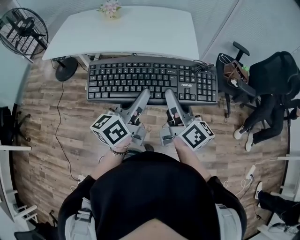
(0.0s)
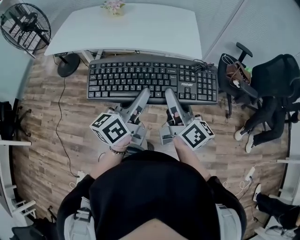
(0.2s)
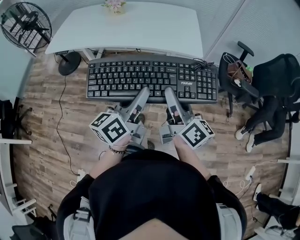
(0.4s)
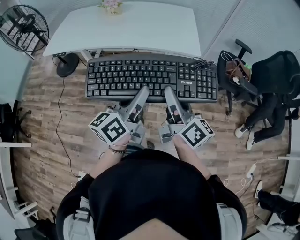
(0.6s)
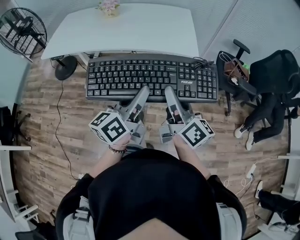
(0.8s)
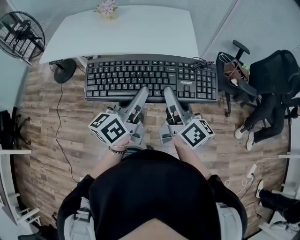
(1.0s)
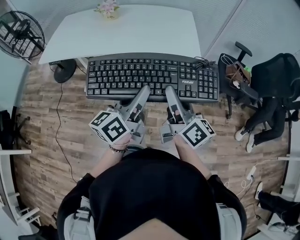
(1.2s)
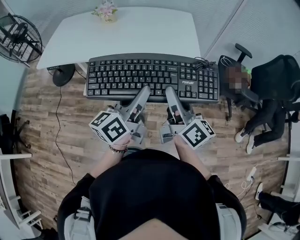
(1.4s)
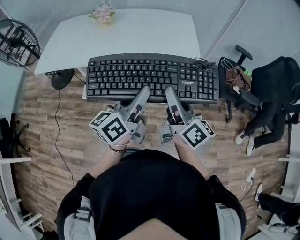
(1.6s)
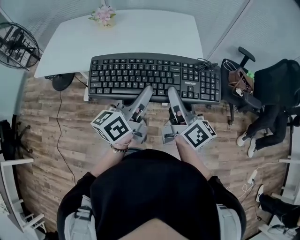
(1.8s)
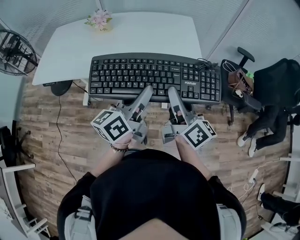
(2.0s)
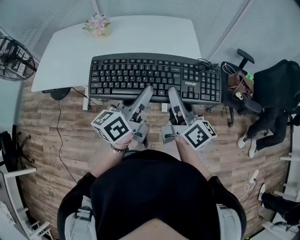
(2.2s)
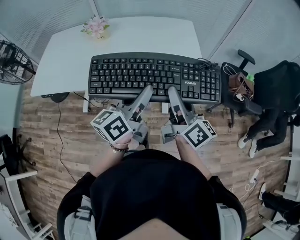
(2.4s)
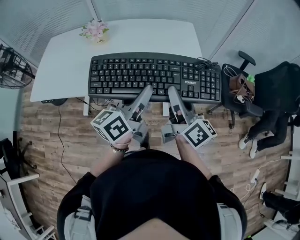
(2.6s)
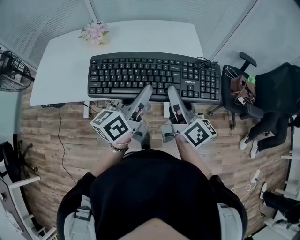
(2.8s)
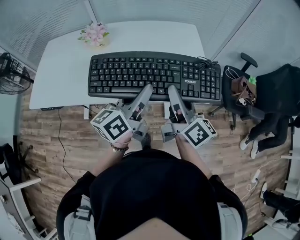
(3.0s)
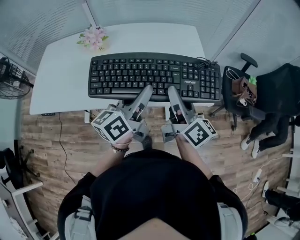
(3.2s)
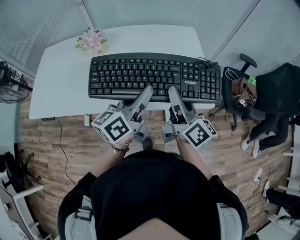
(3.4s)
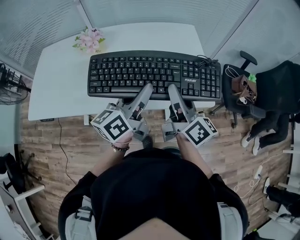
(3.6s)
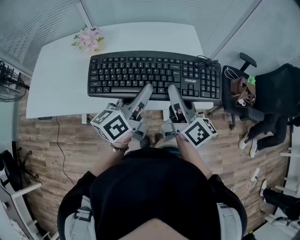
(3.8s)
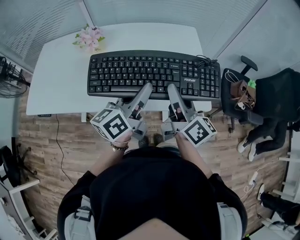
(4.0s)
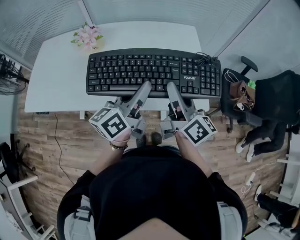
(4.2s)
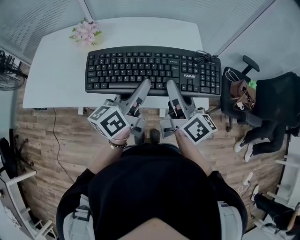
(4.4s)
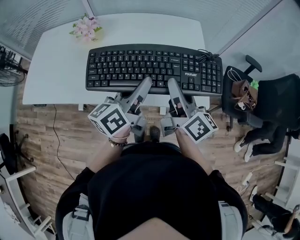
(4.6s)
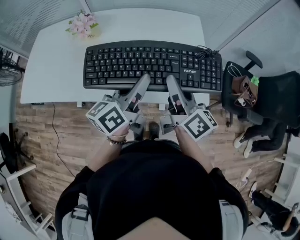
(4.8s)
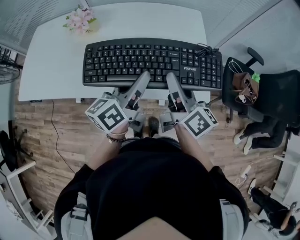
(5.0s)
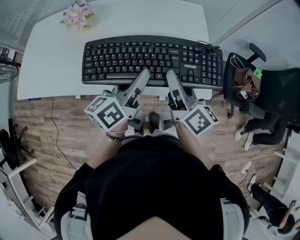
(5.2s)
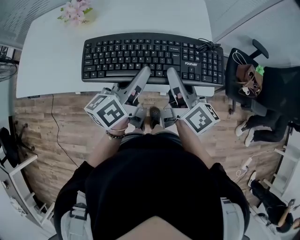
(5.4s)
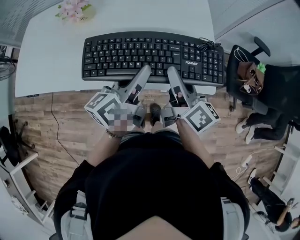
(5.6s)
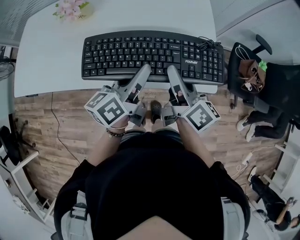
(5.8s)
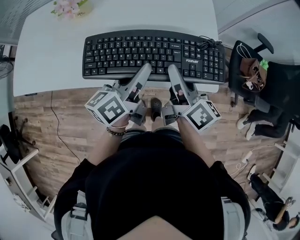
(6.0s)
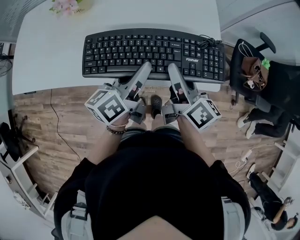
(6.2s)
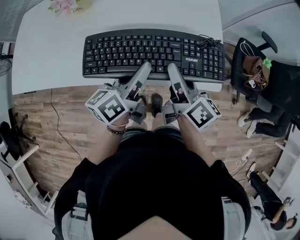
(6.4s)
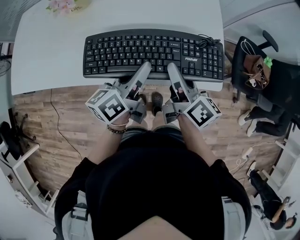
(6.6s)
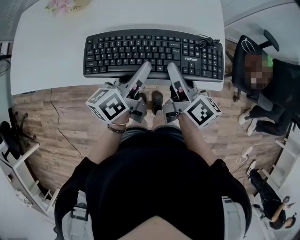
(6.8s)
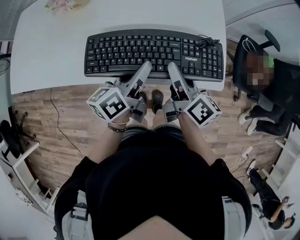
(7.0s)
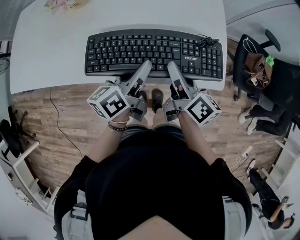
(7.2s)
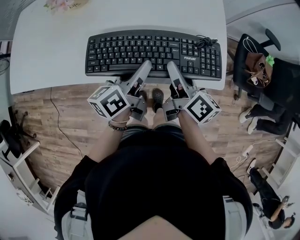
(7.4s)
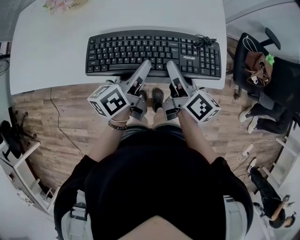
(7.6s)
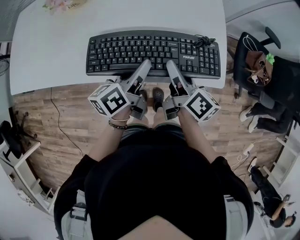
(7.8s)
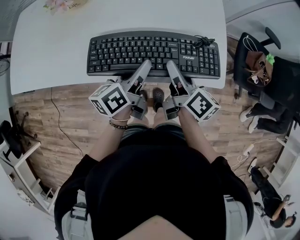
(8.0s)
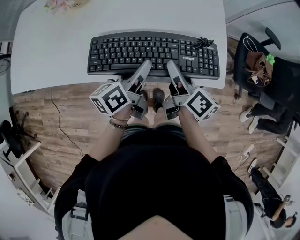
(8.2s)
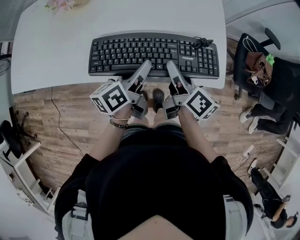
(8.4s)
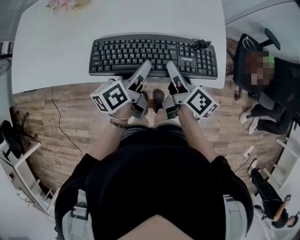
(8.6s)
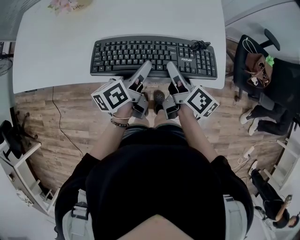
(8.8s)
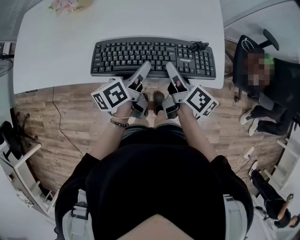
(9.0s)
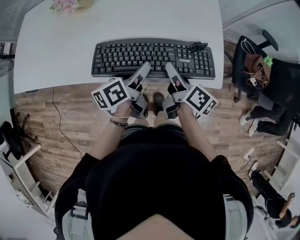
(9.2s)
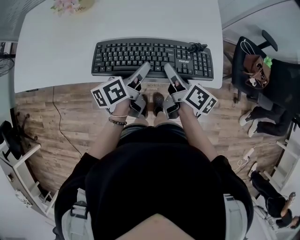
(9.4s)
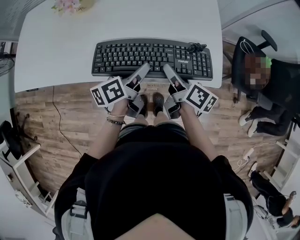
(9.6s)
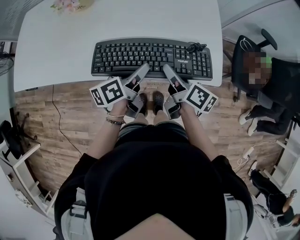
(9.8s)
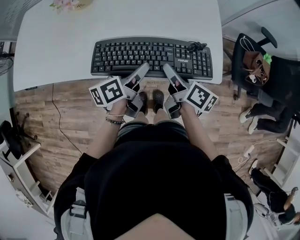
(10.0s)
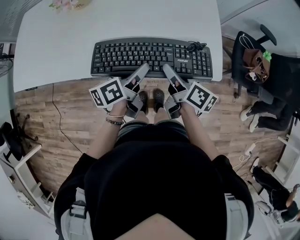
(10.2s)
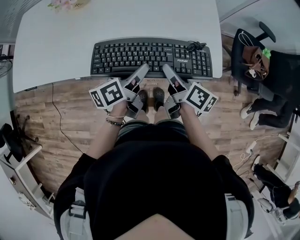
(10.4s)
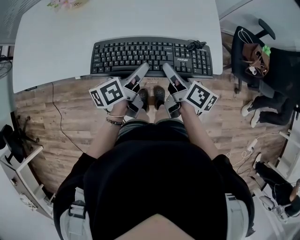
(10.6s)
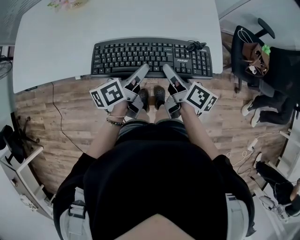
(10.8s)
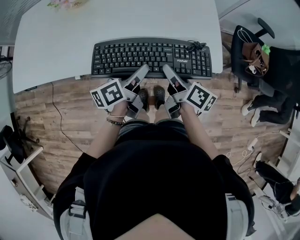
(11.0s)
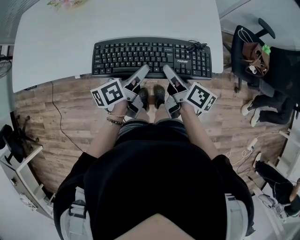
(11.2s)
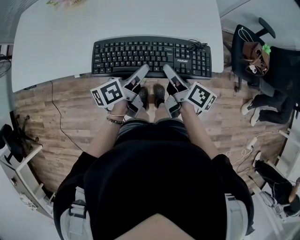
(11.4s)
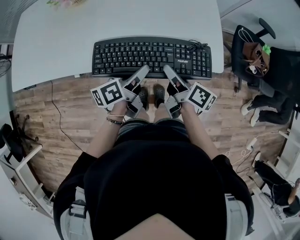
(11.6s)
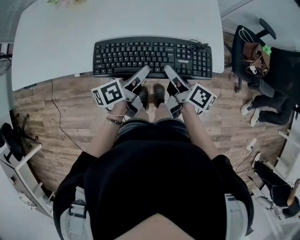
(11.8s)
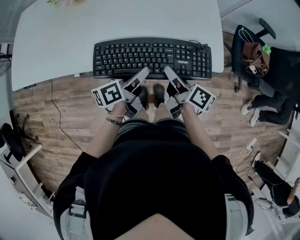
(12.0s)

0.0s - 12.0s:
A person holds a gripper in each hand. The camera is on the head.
0.0s - 1.6s: The two grippers go some 15 cm forward.
1.6s - 3.0s: Both grippers move forward, roughly 15 cm.
3.0s - 4.4s: Both grippers move forward, approximately 10 cm.
4.4s - 6.0s: Both grippers travel together downward, roughly 10 cm.
6.0s - 7.6s: Both grippers move downward, approximately 5 cm.
7.6s - 10.4s: There are only small adjustments of the grippers.
10.4s - 12.0s: There are only small adjustments of the grippers.

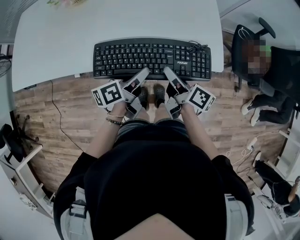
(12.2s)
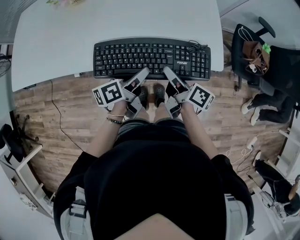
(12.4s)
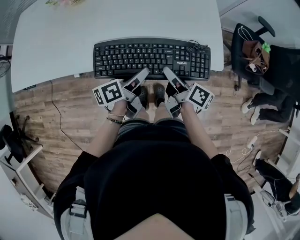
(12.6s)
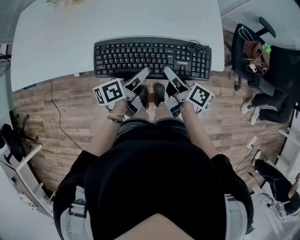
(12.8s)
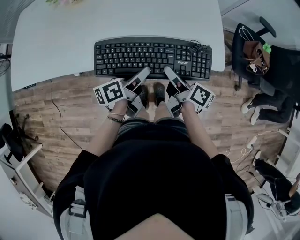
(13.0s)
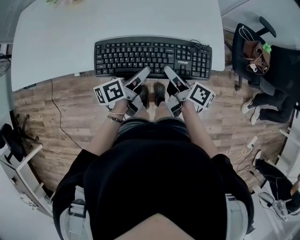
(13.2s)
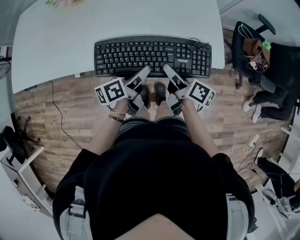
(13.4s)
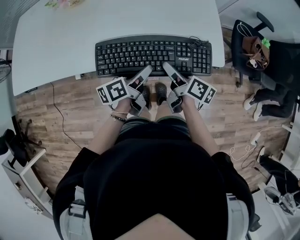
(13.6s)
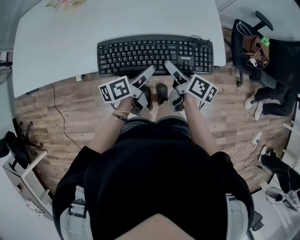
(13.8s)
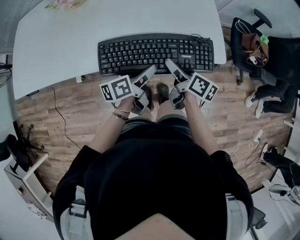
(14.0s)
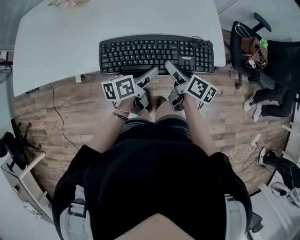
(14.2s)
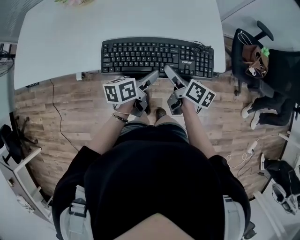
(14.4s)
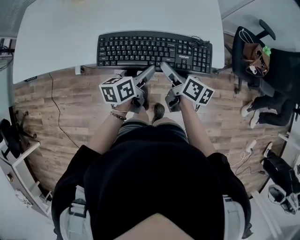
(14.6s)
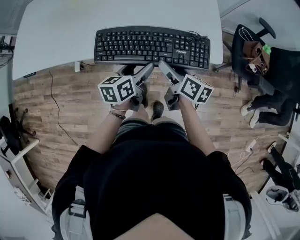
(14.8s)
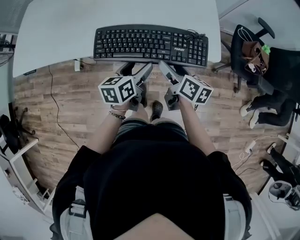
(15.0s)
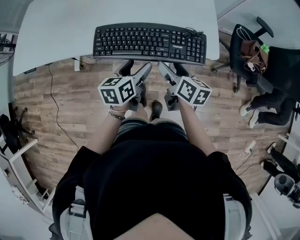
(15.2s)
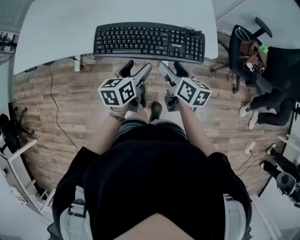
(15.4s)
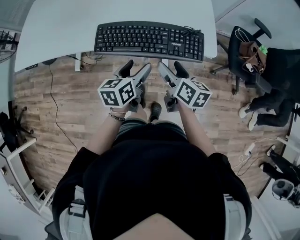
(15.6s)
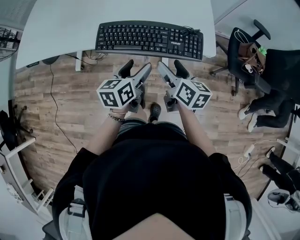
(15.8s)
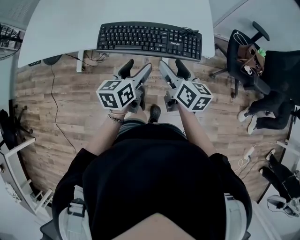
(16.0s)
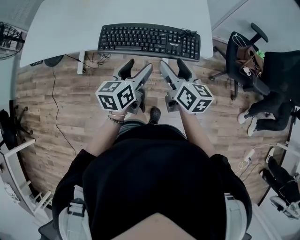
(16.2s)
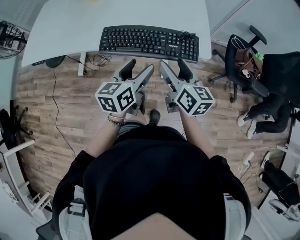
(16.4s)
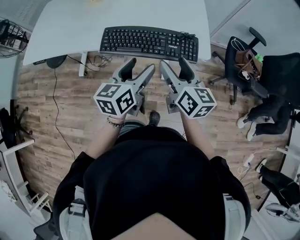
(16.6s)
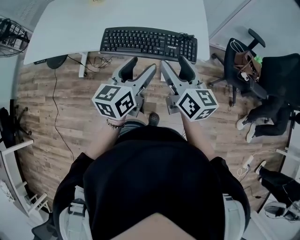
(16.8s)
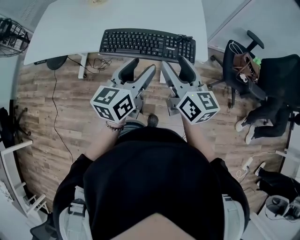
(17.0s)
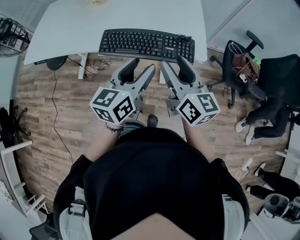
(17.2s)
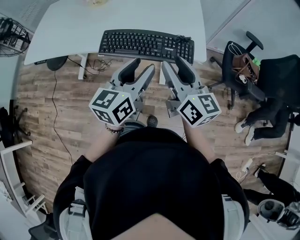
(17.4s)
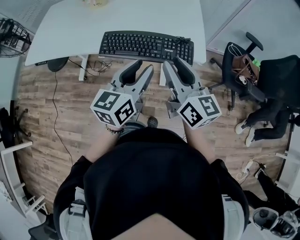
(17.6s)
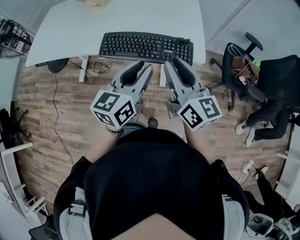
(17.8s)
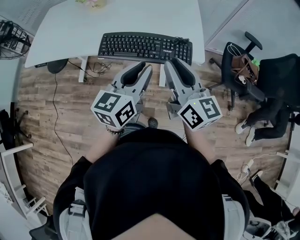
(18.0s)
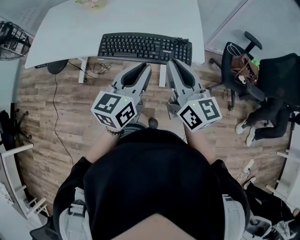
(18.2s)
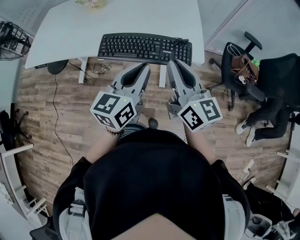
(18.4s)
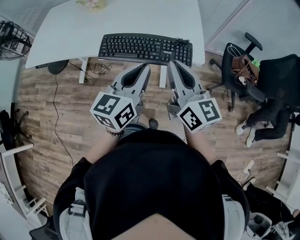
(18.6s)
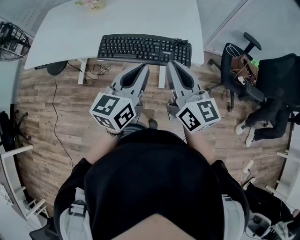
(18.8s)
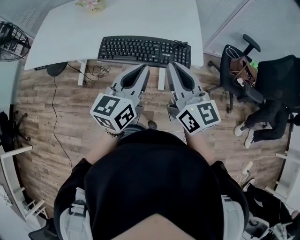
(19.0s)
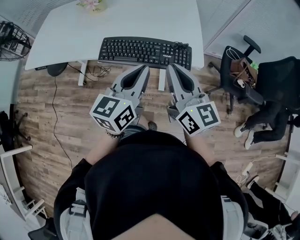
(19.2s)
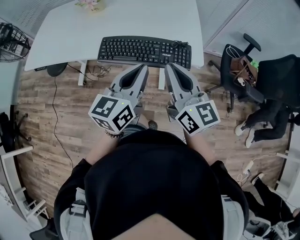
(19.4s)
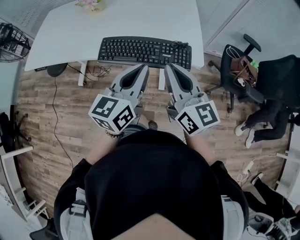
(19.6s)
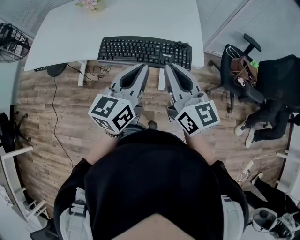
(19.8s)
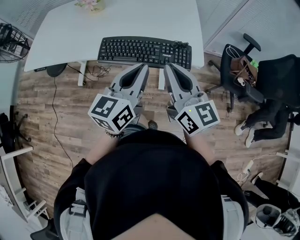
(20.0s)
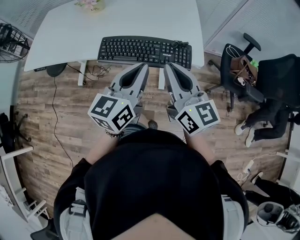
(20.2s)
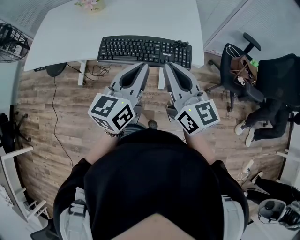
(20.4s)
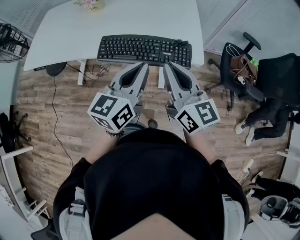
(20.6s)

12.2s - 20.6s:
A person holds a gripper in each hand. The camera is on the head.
12.2s - 13.6s: The right gripper opens.
13.6s - 15.0s: The left gripper rotates some 30 degrees, and opens.
15.0s - 16.4s: The right gripper travels upward by about 10 cm, and changes its angle by approximately 20 degrees. Meanwhile the left gripper travels upward and backward by roughly 10 cm.
16.4s - 17.8s: The grippers both shift upward by about 10 cm. The right gripper closes its fingers, while the left gripper closes.
17.8s - 19.2s: There are only small adjustments of the grippers.
19.2s - 20.6s: Both grippers stay about where they are.

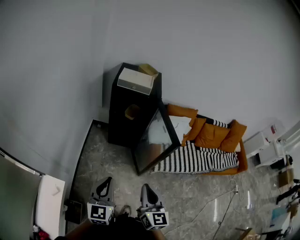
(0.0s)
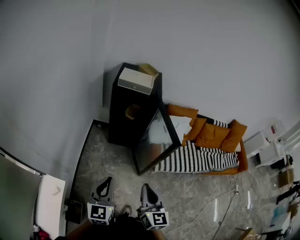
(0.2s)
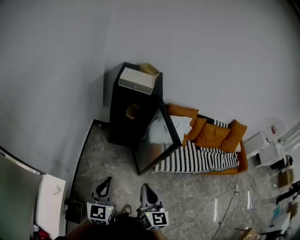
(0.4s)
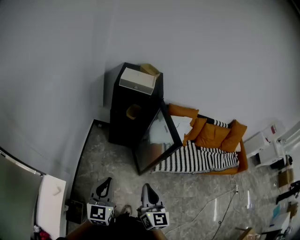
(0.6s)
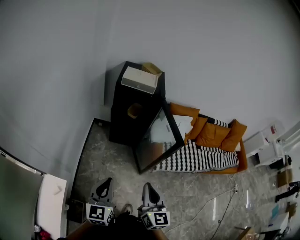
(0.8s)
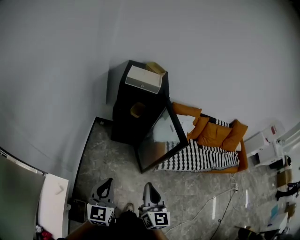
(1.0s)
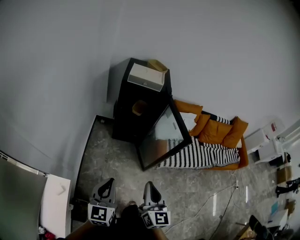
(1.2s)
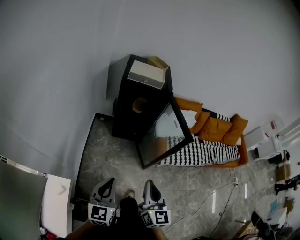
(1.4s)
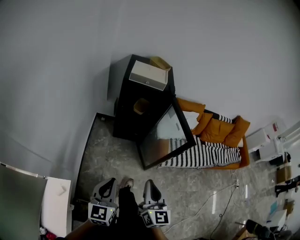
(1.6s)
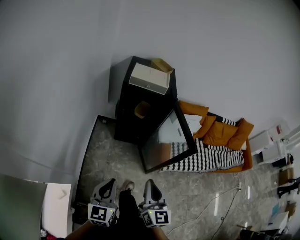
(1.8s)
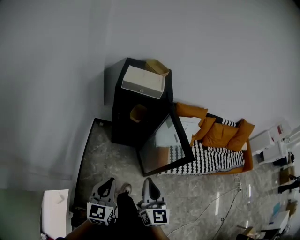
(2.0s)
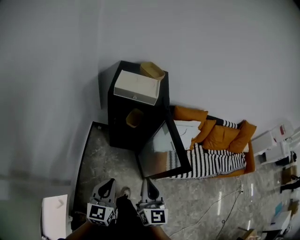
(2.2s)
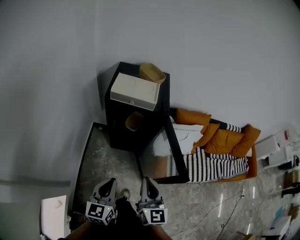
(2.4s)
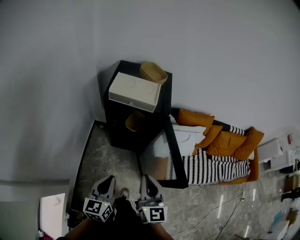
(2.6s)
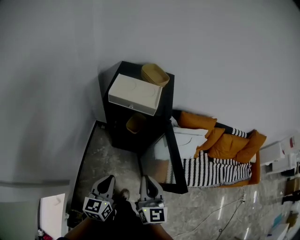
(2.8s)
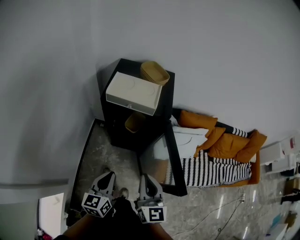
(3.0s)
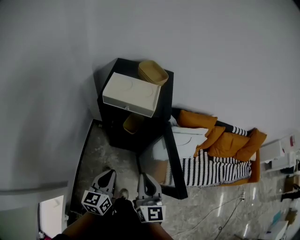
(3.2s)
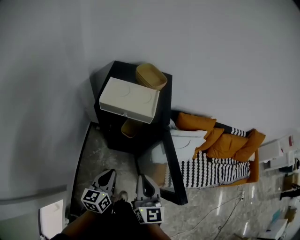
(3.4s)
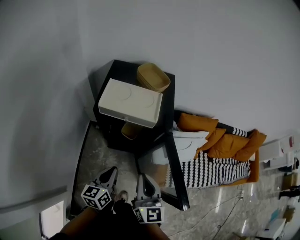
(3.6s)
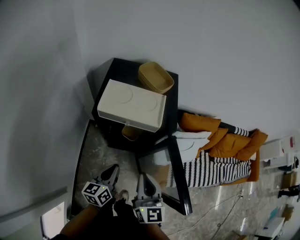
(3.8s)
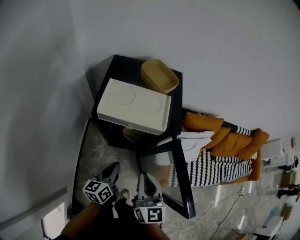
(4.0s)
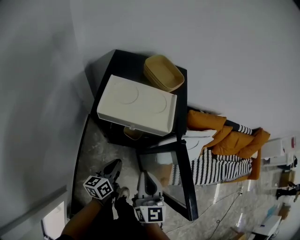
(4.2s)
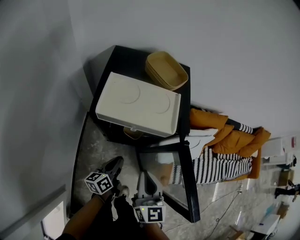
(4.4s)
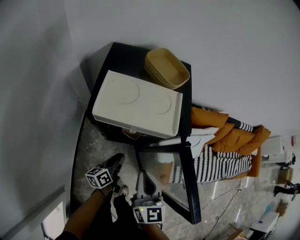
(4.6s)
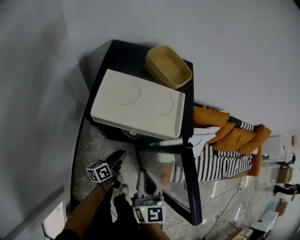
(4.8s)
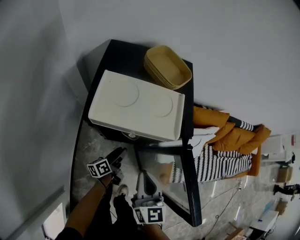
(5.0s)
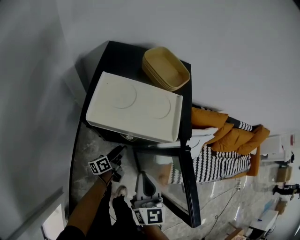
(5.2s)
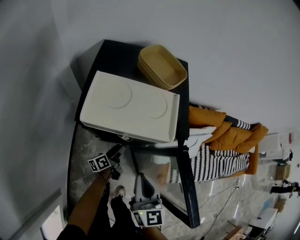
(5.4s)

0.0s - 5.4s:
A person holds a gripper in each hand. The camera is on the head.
0.0s - 1.4s: Both grippers move to the left, some 10 cm.
1.4s - 2.8s: The grippers both shift forward by roughly 30 cm.
2.8s - 4.0s: The left gripper goes some 20 cm forward and downward, while the right gripper goes some 15 cm forward.
4.0s - 5.4s: The left gripper is displaced downward and forward by approximately 25 cm, rotates roughly 30 degrees, and opens up; the right gripper heads downward, covering approximately 5 cm.
